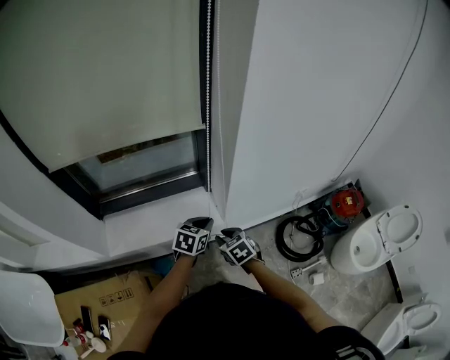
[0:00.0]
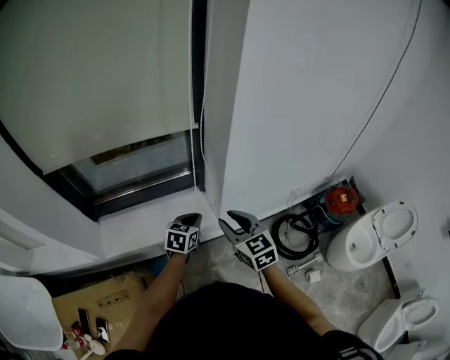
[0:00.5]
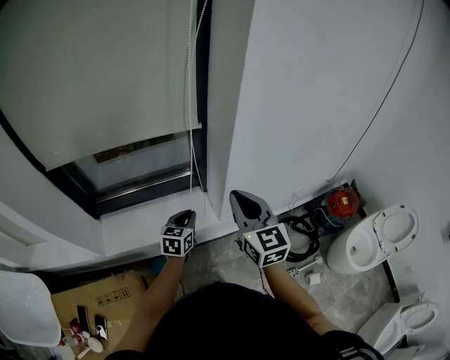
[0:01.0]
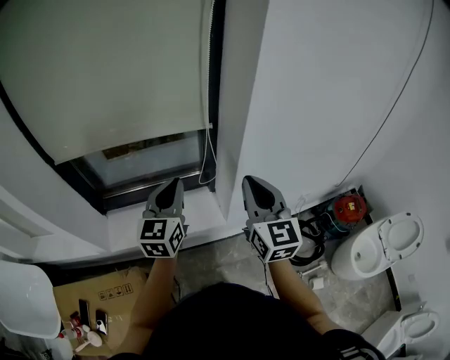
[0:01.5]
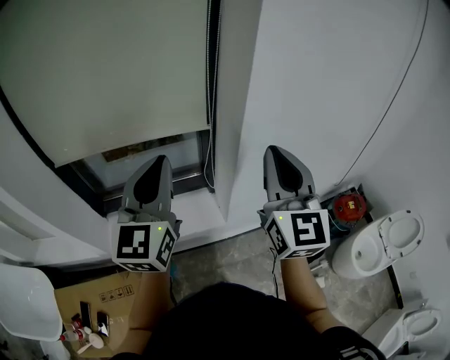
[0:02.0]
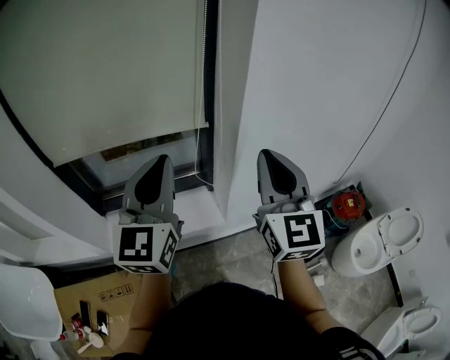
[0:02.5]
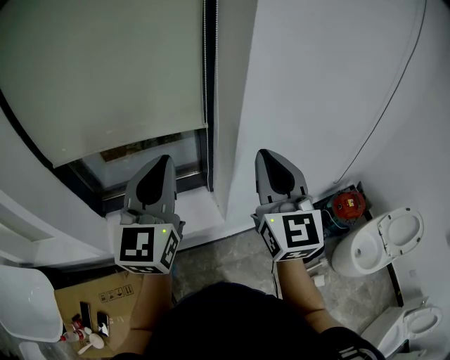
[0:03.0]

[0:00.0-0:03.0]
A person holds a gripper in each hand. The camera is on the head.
0:00.0 to 0:01.5: The left gripper goes about 25 cm upward and to the left, and points its fingers about 30 degrees further upward; the right gripper shifts approximately 35 cm upward, tips its fingers upward by some 50 degrees, and opens, then closes once more.
0:01.5 to 0:03.0: The grippers both shift upward by some 15 cm.

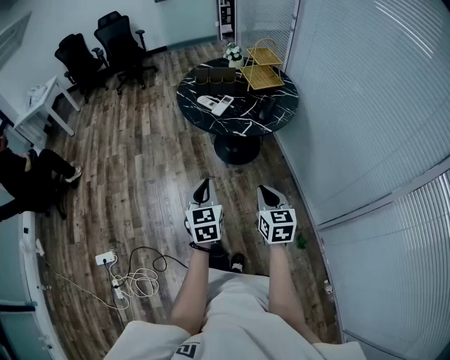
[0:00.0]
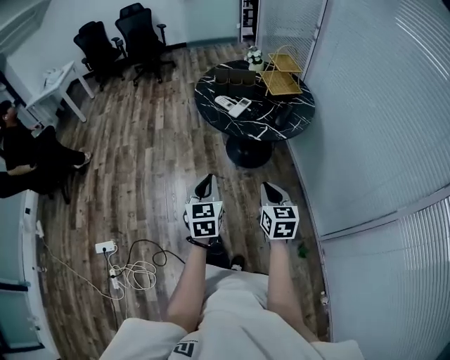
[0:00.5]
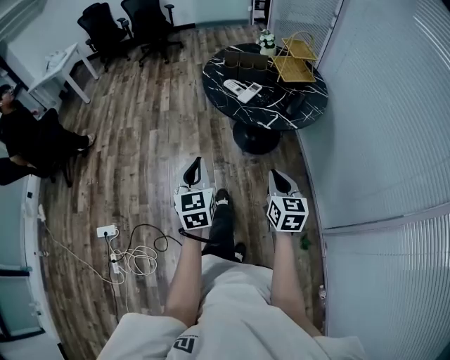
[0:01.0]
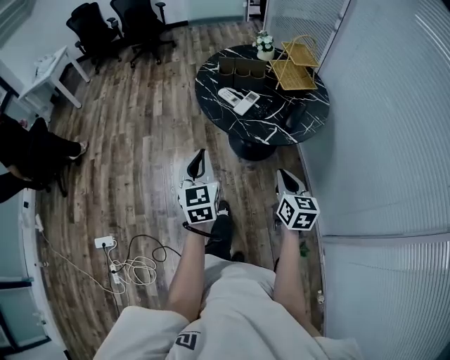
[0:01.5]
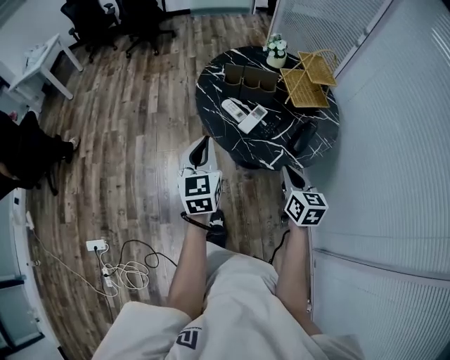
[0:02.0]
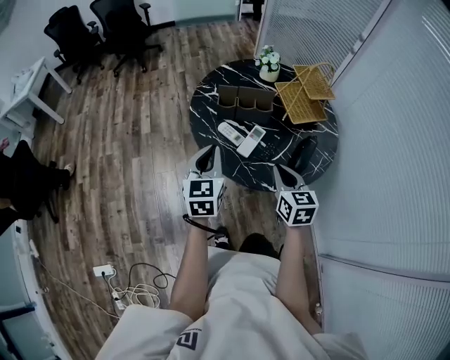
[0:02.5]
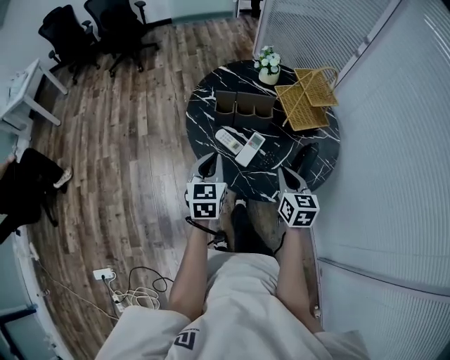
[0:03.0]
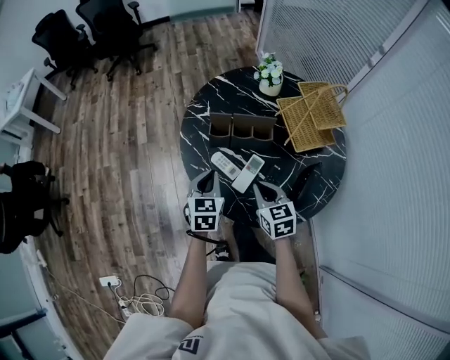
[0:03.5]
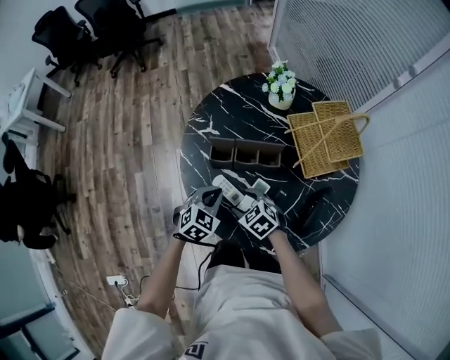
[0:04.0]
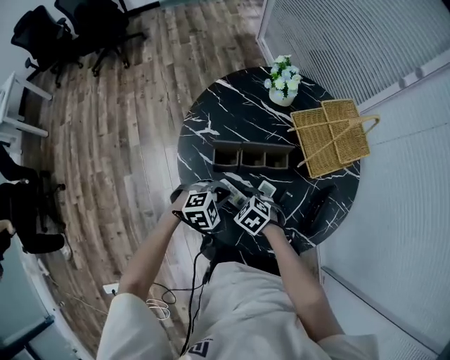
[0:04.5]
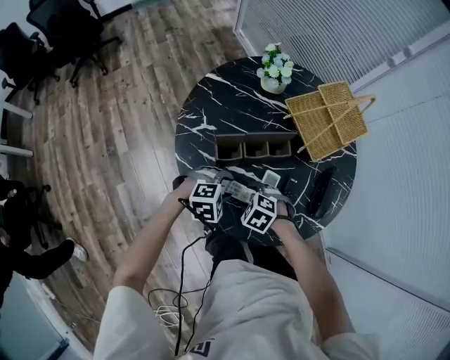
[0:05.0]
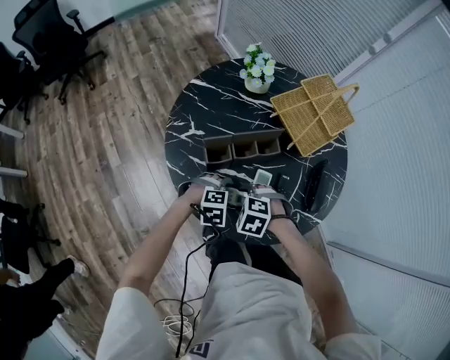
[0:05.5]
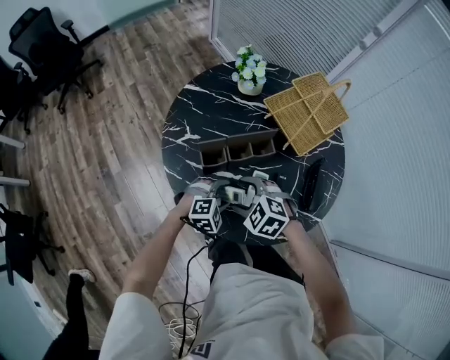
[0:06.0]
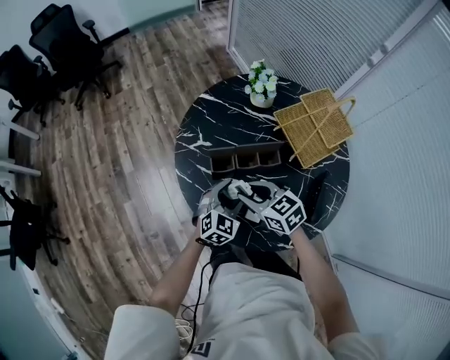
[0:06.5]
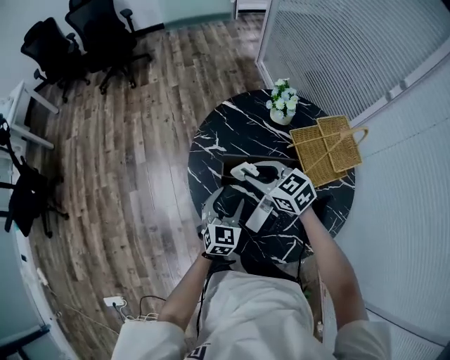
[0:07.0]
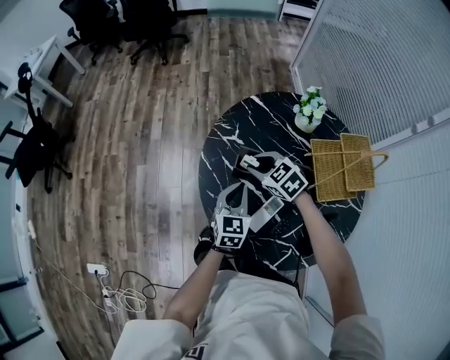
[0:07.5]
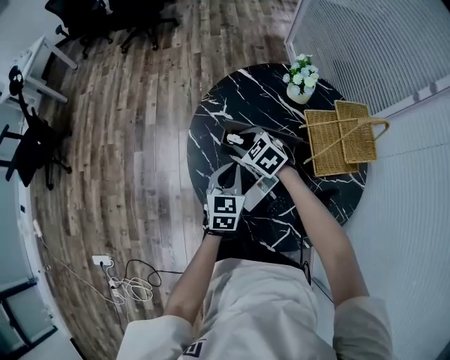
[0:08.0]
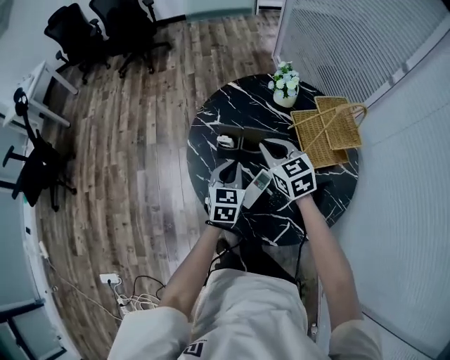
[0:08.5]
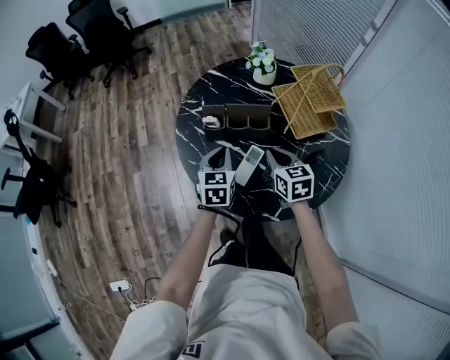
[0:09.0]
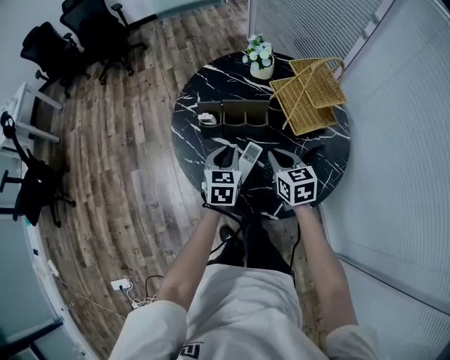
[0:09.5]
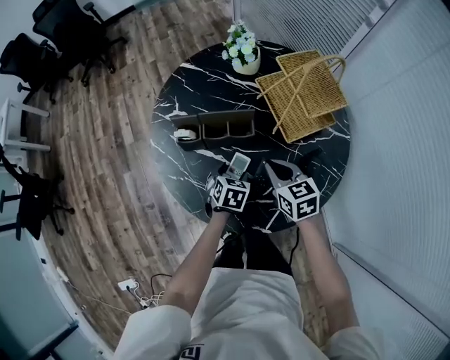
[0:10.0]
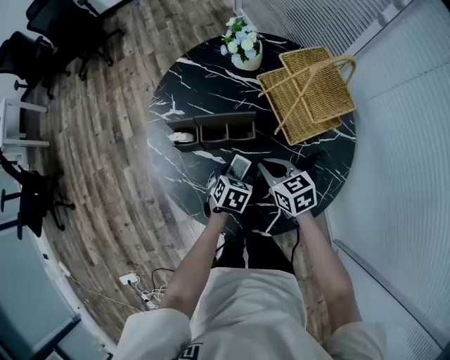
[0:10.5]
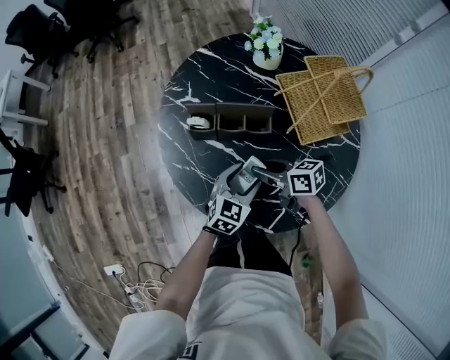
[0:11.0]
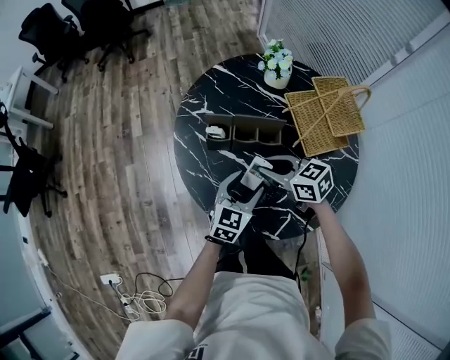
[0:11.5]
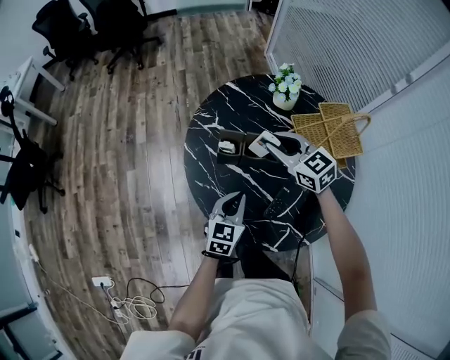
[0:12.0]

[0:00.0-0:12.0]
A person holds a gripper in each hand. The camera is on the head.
0:00.0 to 0:02.0: Both grippers travel together forward, roughly 35 cm.
0:02.0 to 0:04.0: The grippers both shift forward and downward by roughly 35 cm. The right gripper swivels roughly 50 degrees, and opens its fingers, while the left gripper points its fingers about 30 degrees further downward.
0:04.0 to 0:06.0: The left gripper heads downward, covering some 10 cm, twists roughly 50 degrees clockwise, seen from behind, and opens, while the right gripper ends up about 5 cm from where it was.
0:06.0 to 0:08.0: The left gripper shifts about 10 cm upward, swivels approximately 90 degrees, and closes. The right gripper moves roughly 10 cm upward and comes back, and closes its fingers.
0:08.0 to 0:10.0: The right gripper moves about 10 cm upward and comes back, twists roughly 40 degrees clockwise, seen from behind, and closes up, while the left gripper ends up some 20 cm from where it was, changes its angle by some 40 degrees, and opens.
0:10.0 to 0:12.0: The right gripper shifts roughly 20 cm upward, forward and to the left, and changes its angle by roughly 40 degrees. Meanwhile the left gripper moves upward and to the left, about 15 cm, angles its fingers upward, by approximately 30 degrees, and closes up.

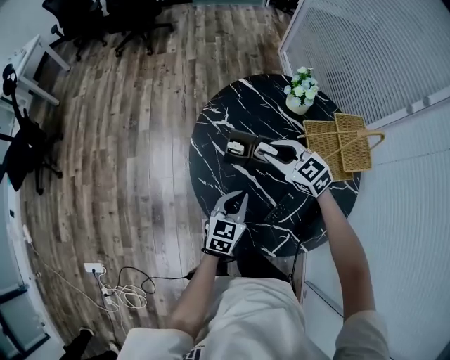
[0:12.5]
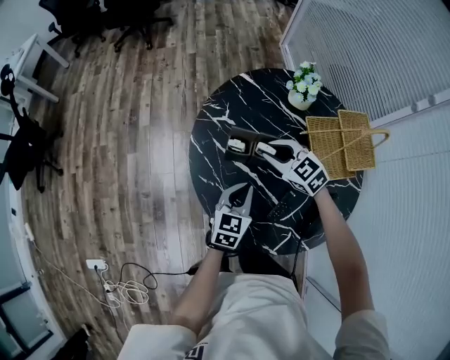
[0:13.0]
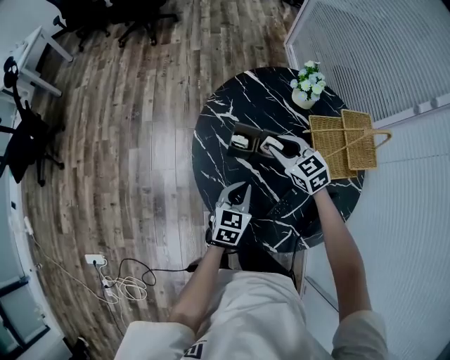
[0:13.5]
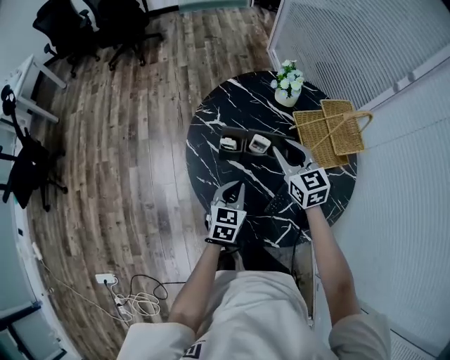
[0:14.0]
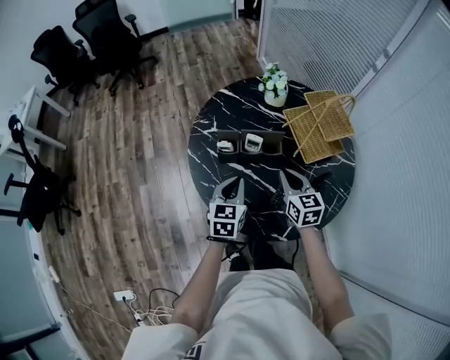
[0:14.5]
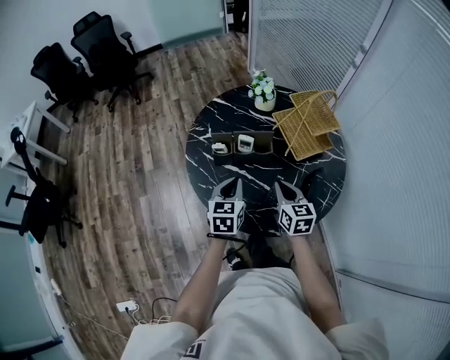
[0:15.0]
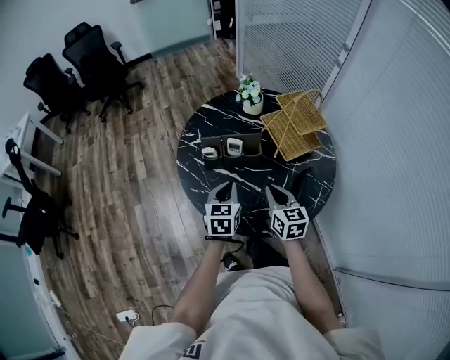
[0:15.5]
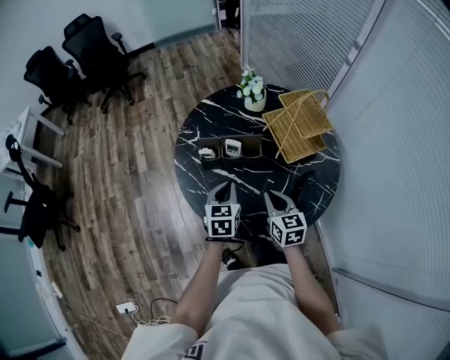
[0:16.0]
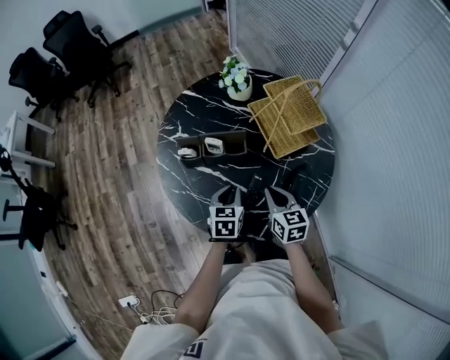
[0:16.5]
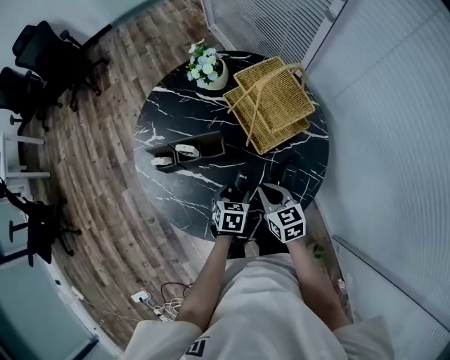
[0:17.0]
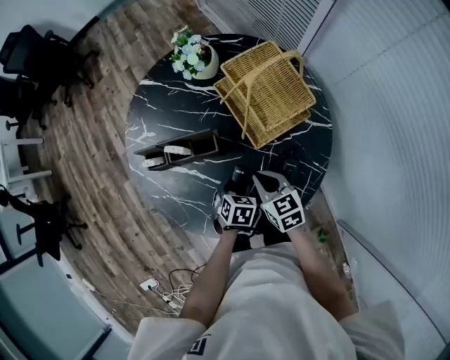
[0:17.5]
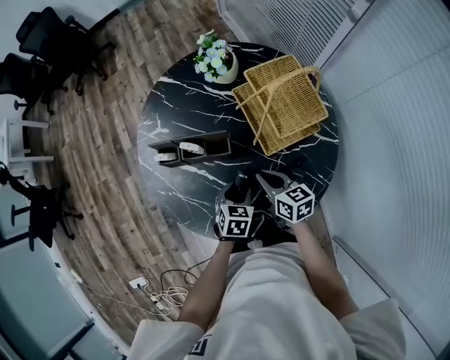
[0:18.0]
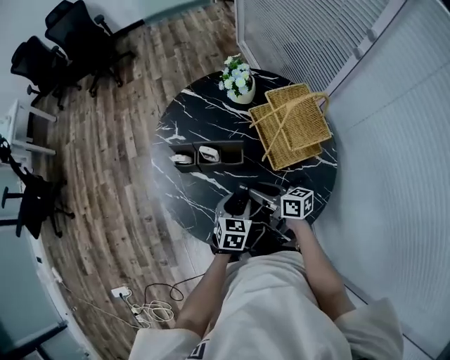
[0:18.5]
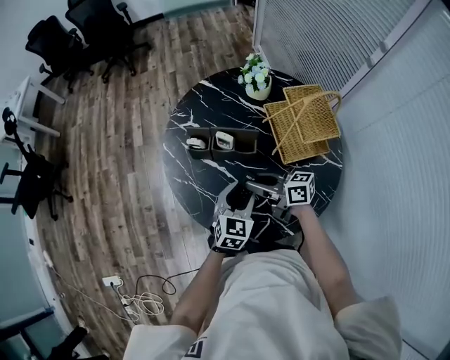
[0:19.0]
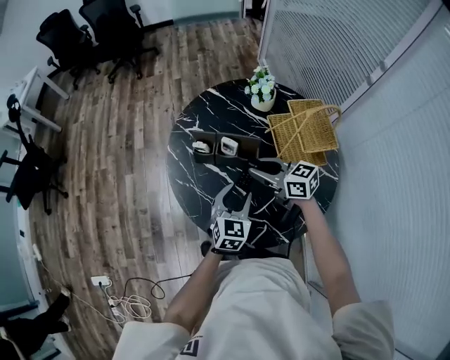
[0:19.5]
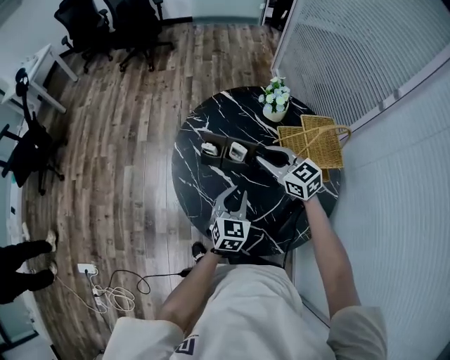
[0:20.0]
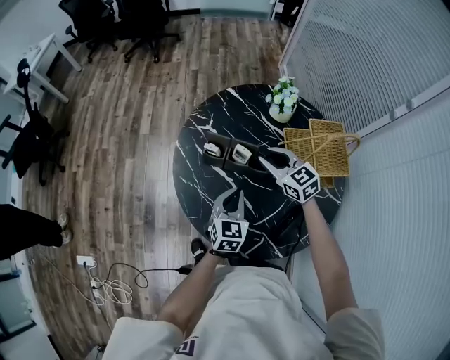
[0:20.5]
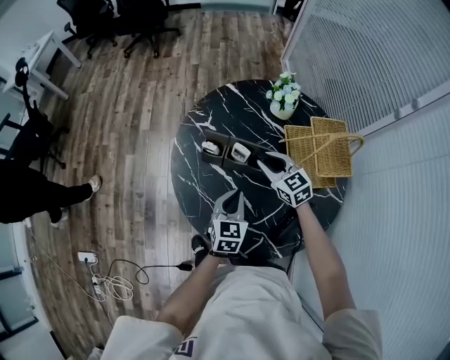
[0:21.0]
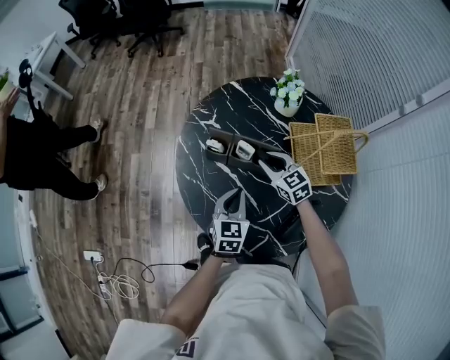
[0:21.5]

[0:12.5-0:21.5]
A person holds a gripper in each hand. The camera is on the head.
0:12.5 to 0:14.5: The right gripper heads backward and to the right, covering roughly 15 cm, and rotates approximately 50 degrees. Meanwhile the left gripper goes approximately 5 cm upward.
0:14.5 to 0:17.0: The left gripper heads to the right and downward, covering some 25 cm, rotates about 30 degrees, and opens its fingers; the right gripper moves to the right and downward, some 15 cm.
0:17.0 to 0:19.5: The right gripper changes place by roughly 20 cm, and changes its angle by roughly 50 degrees. The left gripper moves upward, some 15 cm, and points its fingers about 30 degrees further upward.
0:19.5 to 0:21.5: The left gripper moves about 5 cm, and closes up. The right gripper shifts about 10 cm downward and forward, and turns by about 30 degrees.

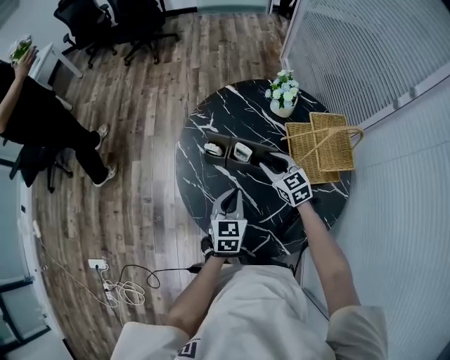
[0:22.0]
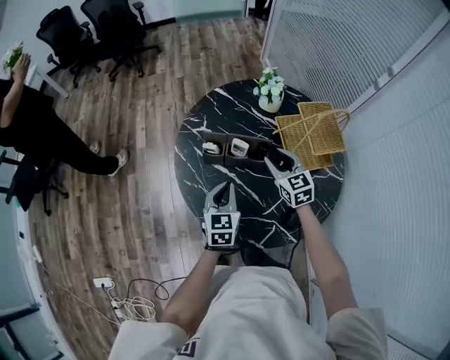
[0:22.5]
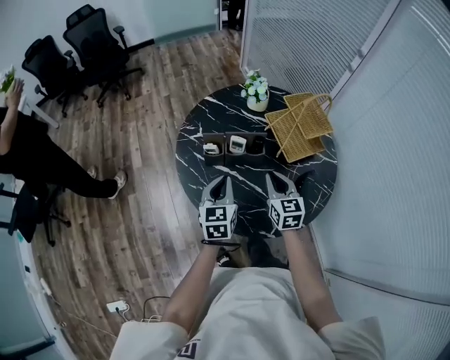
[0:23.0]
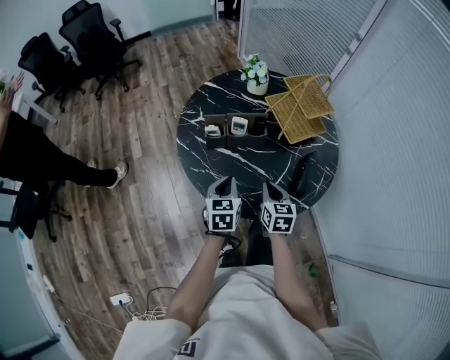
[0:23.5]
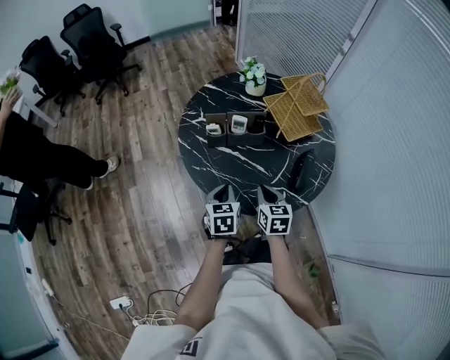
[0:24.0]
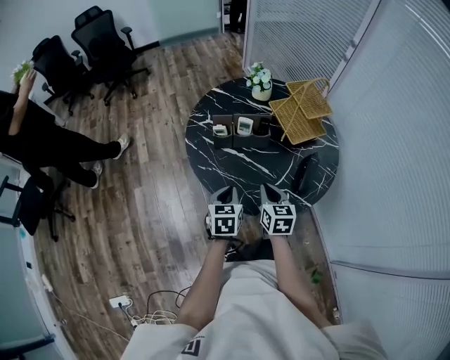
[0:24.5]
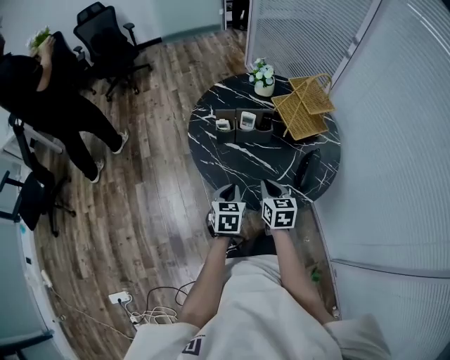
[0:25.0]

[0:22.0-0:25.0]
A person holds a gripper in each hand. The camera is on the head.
0:22.0 to 0:23.5: The right gripper shifts by some 20 cm, swivels roughly 50 degrees, and closes. The left gripper changes place by some 10 cm.
0:23.5 to 0:25.0: The right gripper shifts by approximately 5 cm; the left gripper goes about 5 cm backward.
